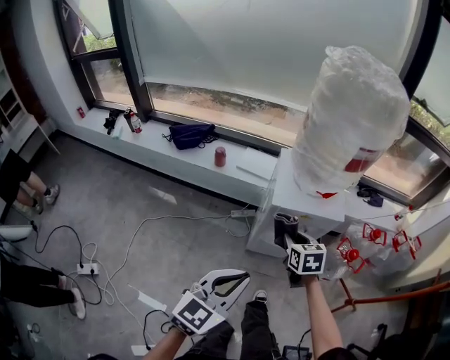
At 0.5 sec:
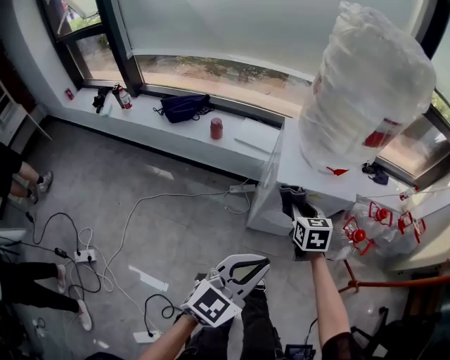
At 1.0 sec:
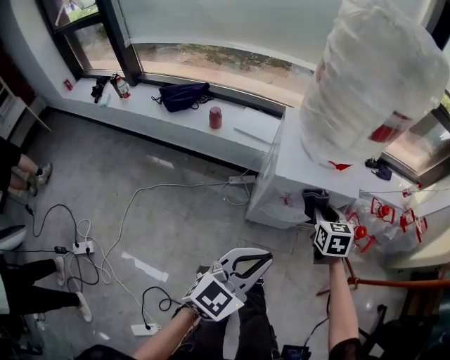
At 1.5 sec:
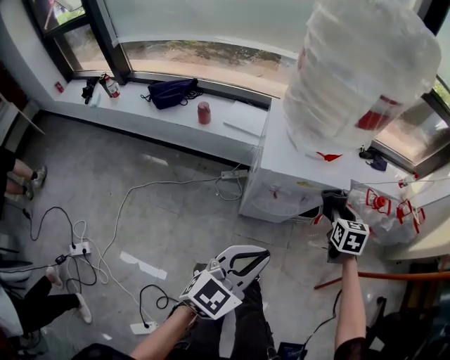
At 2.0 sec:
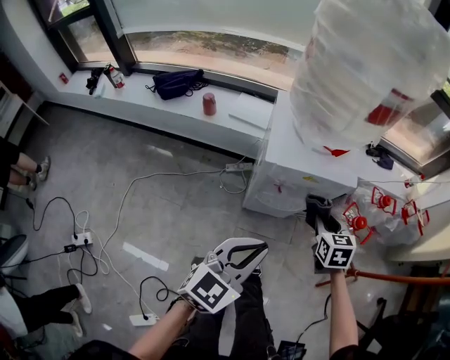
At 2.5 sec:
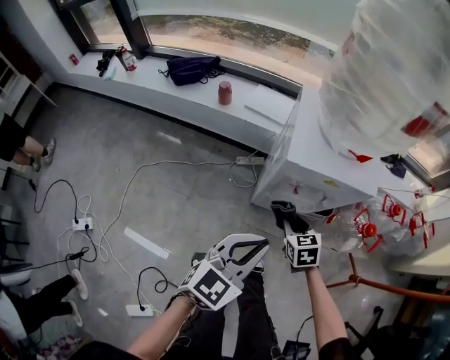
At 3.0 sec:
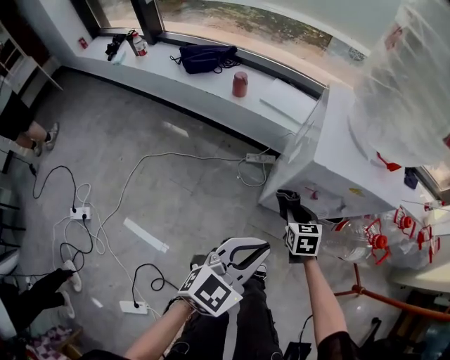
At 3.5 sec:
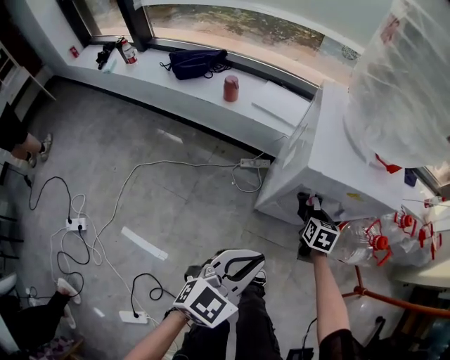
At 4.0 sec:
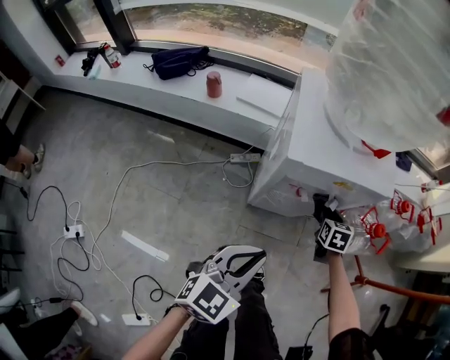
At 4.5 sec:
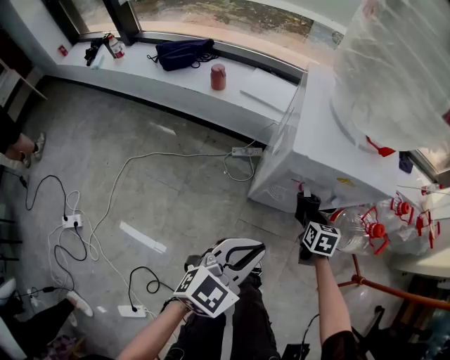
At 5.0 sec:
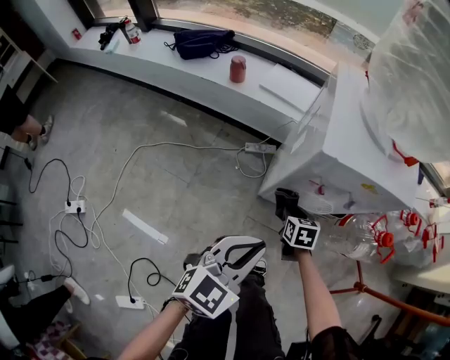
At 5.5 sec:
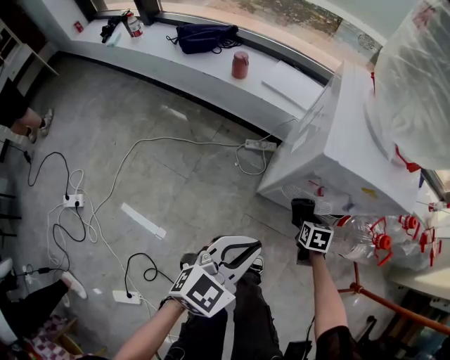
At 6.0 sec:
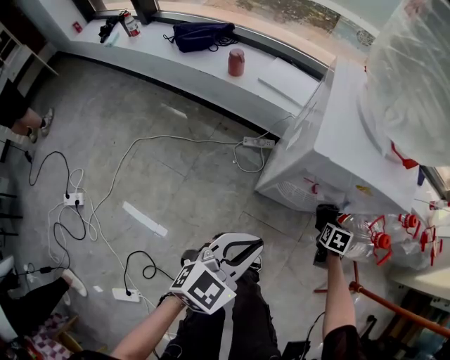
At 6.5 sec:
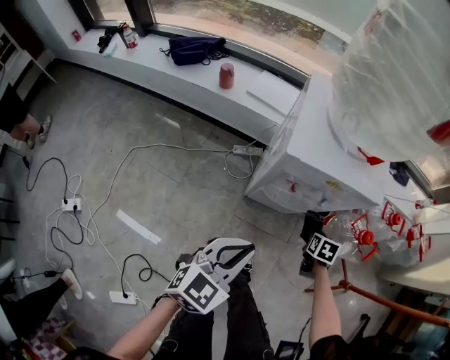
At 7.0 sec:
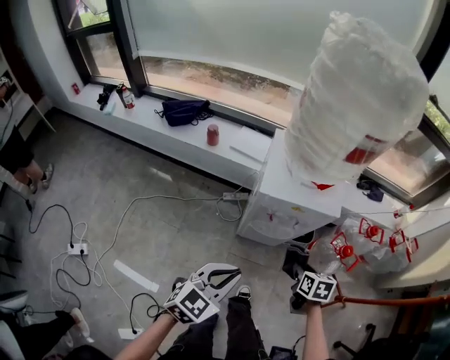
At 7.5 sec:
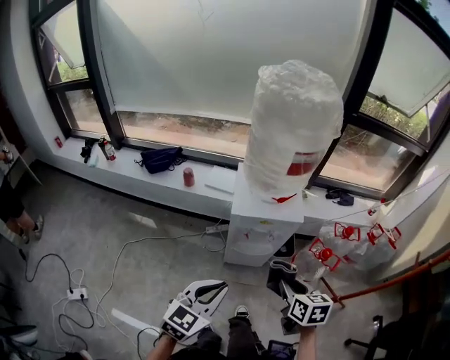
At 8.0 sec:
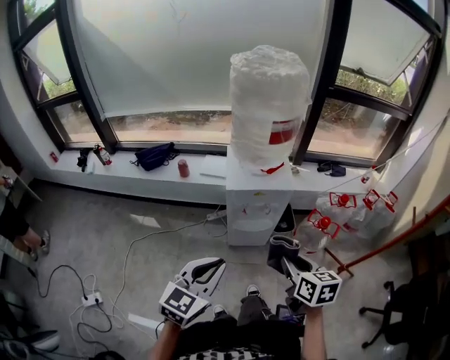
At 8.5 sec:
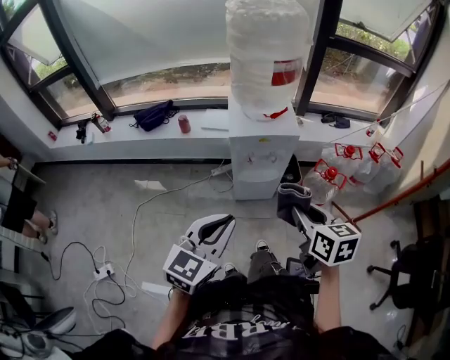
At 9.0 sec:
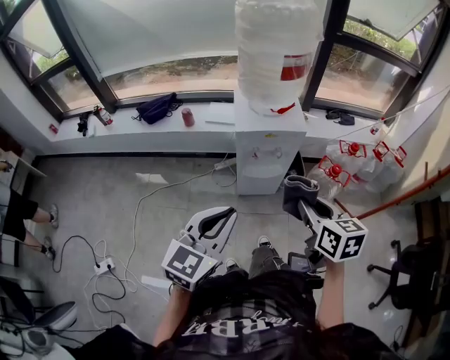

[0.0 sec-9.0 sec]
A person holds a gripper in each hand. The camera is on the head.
0.0 sec to 2.0 sec: The right gripper goes approximately 15 cm to the right and downward. The left gripper moves downward, forward and to the right, roughly 15 cm.
2.0 sec to 4.5 sec: The right gripper shifts approximately 20 cm downward. Meanwhile the left gripper goes about 15 cm downward.
4.5 sec to 7.0 sec: The left gripper shifts some 15 cm upward and backward. The right gripper travels upward and backward by roughly 25 cm.
7.0 sec to 9.0 sec: The right gripper goes about 30 cm upward and backward, and rotates approximately 20 degrees. Meanwhile the left gripper goes about 20 cm upward and backward.

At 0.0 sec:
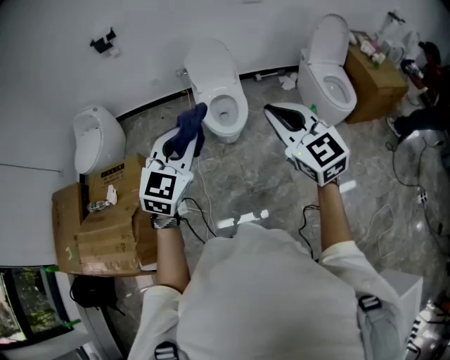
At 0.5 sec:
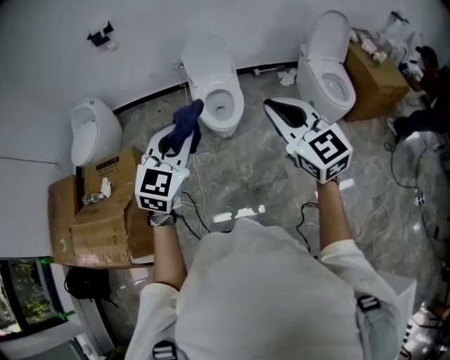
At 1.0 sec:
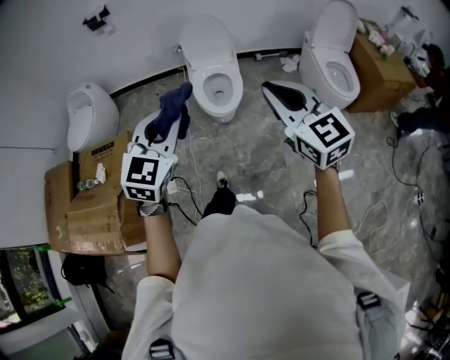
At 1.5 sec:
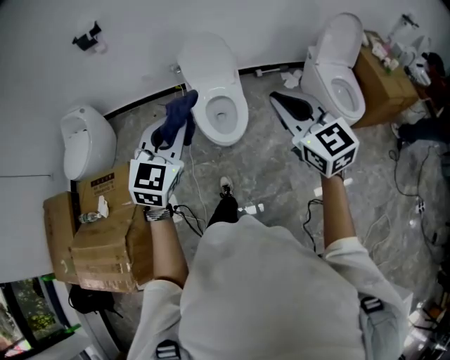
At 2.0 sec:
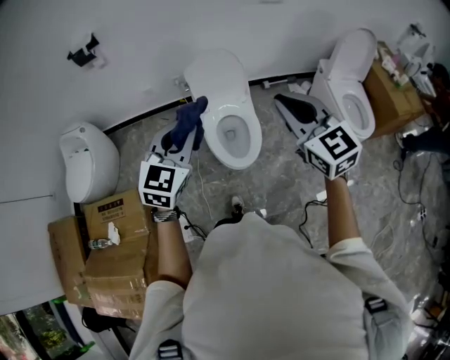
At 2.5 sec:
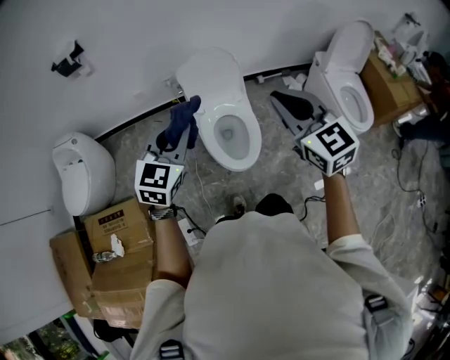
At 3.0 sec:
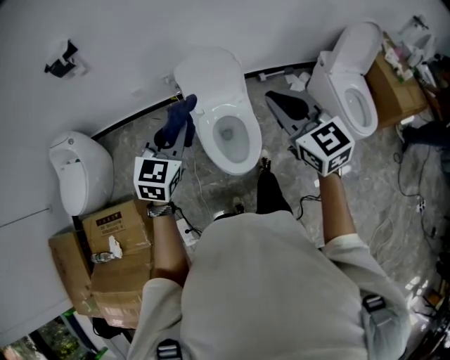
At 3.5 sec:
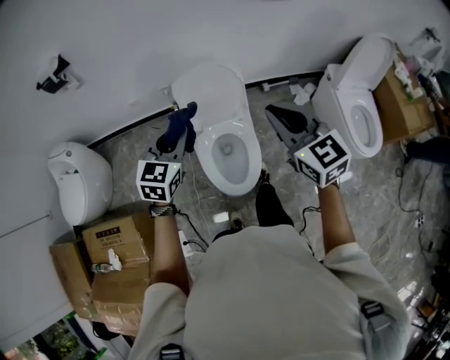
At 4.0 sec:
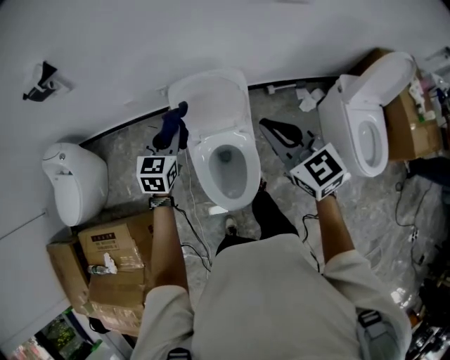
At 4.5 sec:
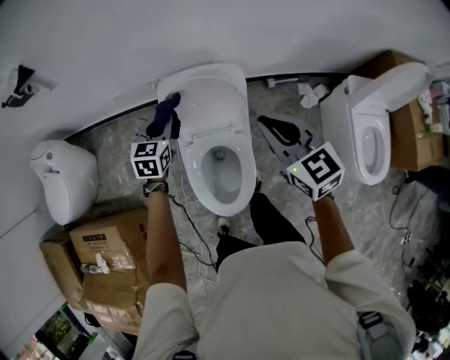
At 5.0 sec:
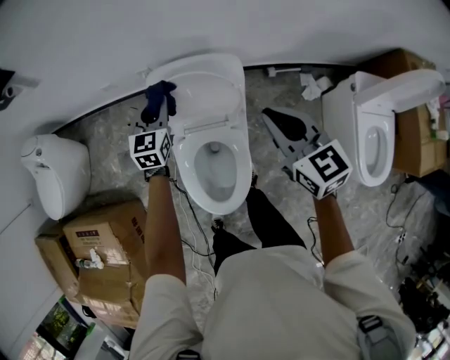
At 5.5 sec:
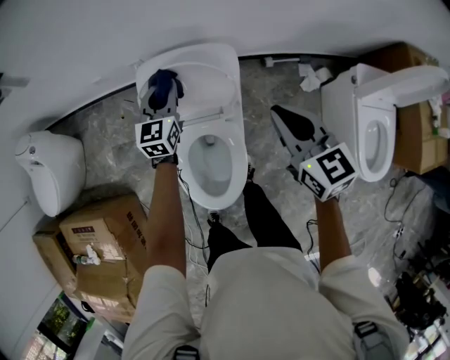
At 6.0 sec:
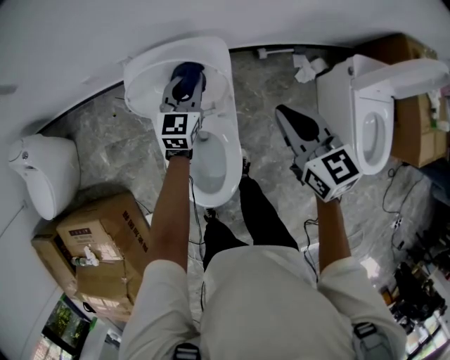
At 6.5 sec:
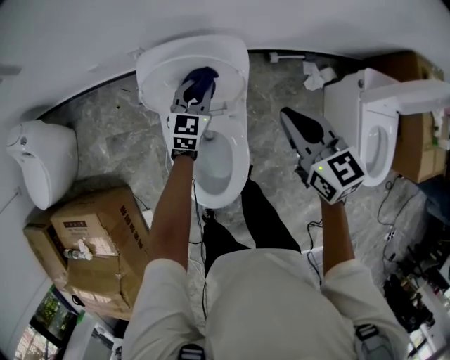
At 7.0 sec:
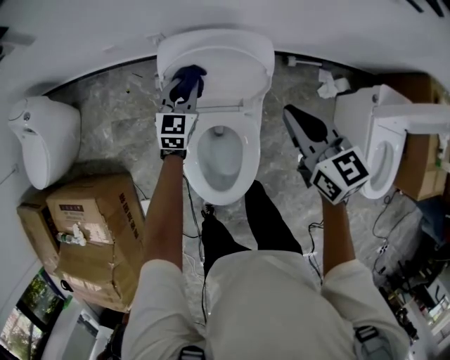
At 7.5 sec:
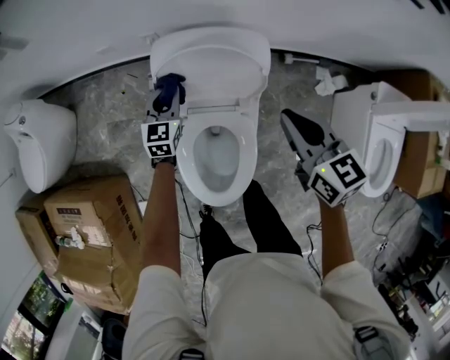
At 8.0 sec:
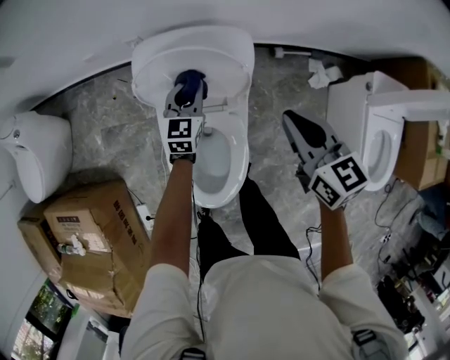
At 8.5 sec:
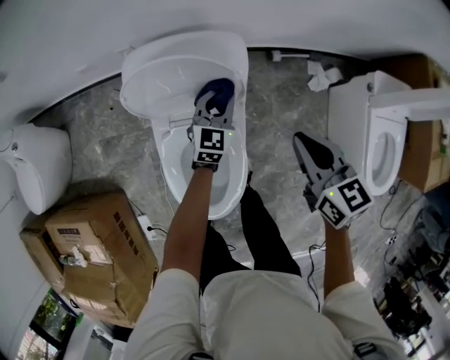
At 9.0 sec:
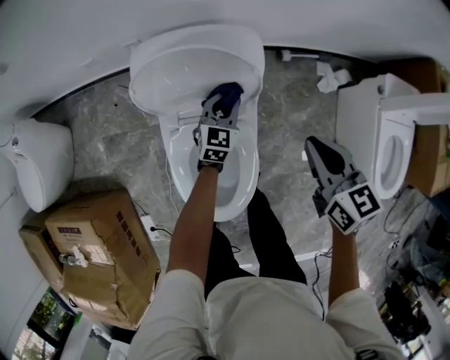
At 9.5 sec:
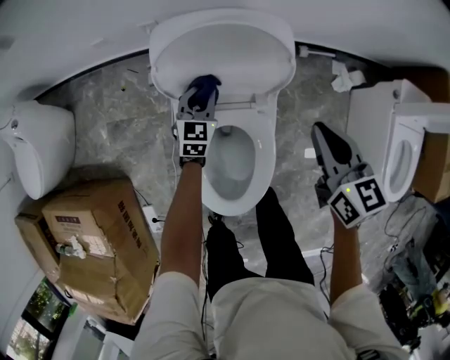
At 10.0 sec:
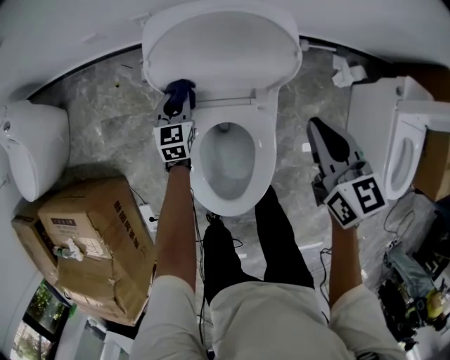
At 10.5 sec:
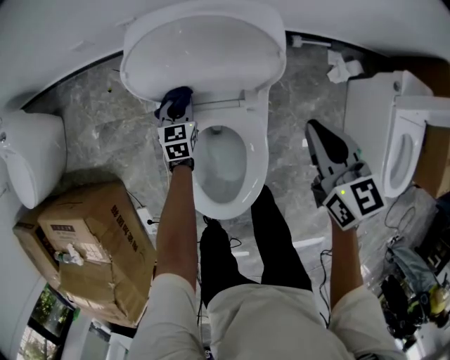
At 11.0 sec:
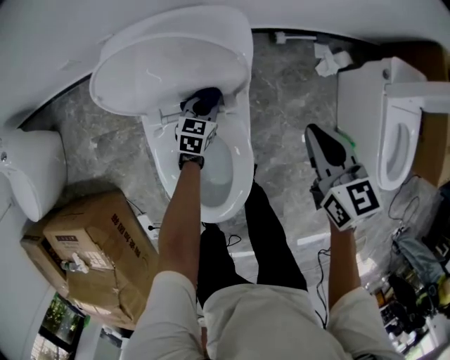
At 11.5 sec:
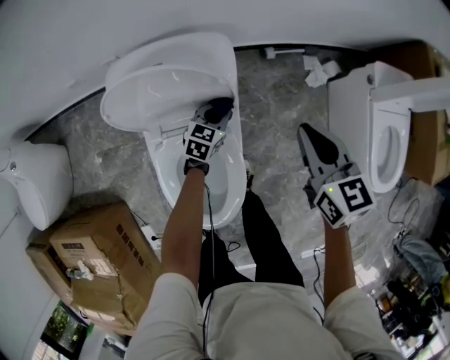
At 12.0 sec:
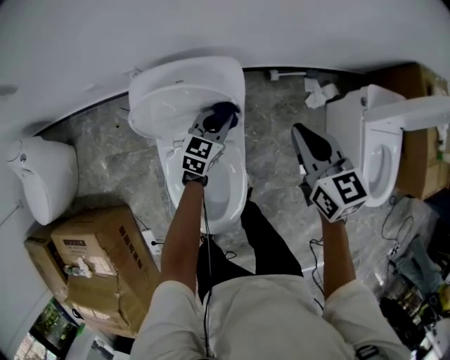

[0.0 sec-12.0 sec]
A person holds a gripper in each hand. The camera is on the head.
0.0 sec to 2.0 sec: The two grippers go some 35 cm forward.
2.0 sec to 4.0 sec: The left gripper travels forward and downward by about 40 cm, and turns by some 20 degrees, while the right gripper heads forward, covering some 30 cm.
4.0 sec to 6.0 sec: The left gripper moves to the right, downward and forward, approximately 30 cm; the right gripper goes roughly 25 cm downward, to the right and forward.
6.0 sec to 8.0 sec: The left gripper heads downward and to the left, covering approximately 10 cm.
8.0 sec to 10.0 sec: The left gripper shifts roughly 20 cm downward and to the left; the right gripper is displaced downward by about 10 cm.
10.0 sec to 12.0 sec: The left gripper is displaced to the right and upward by some 30 cm, and swivels about 30 degrees. Meanwhile the right gripper heads to the right, upward and forward, covering some 15 cm.

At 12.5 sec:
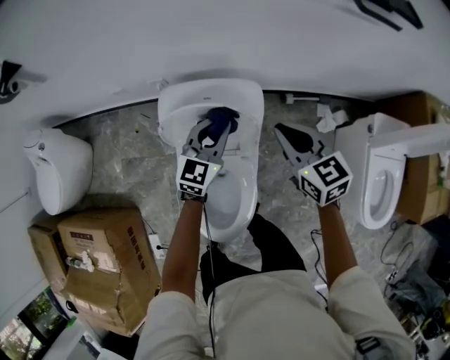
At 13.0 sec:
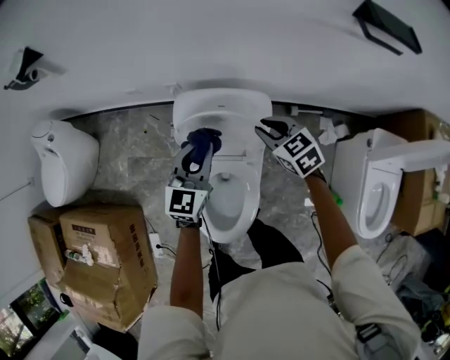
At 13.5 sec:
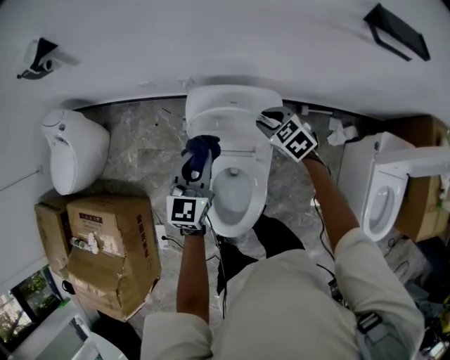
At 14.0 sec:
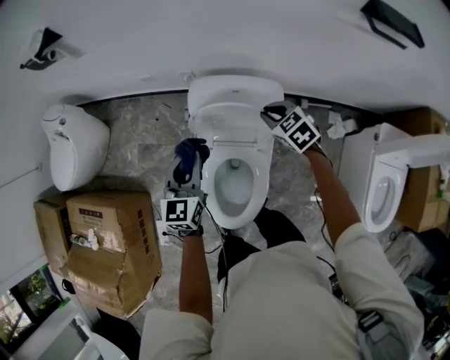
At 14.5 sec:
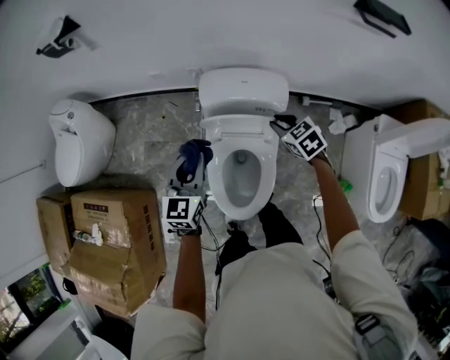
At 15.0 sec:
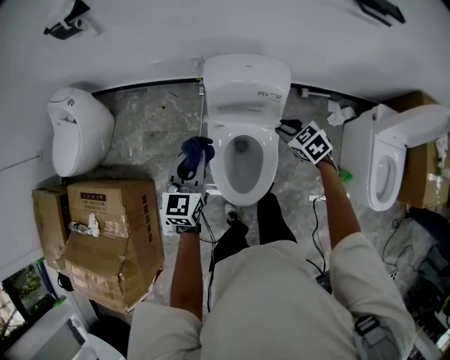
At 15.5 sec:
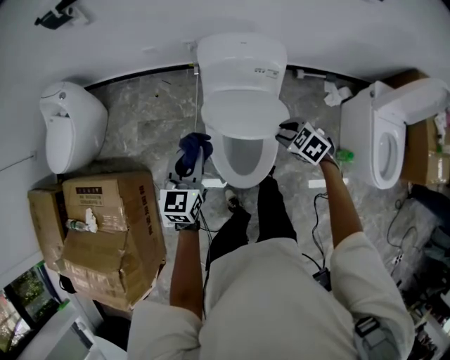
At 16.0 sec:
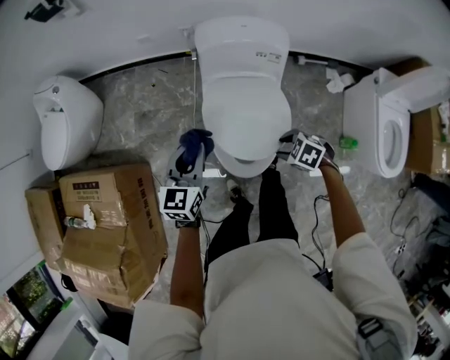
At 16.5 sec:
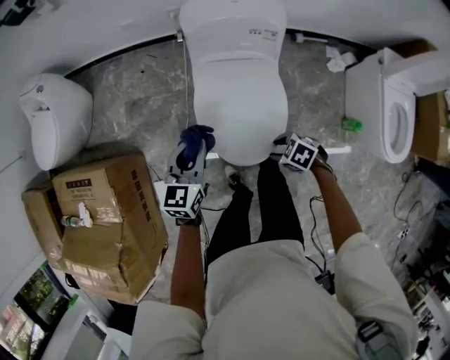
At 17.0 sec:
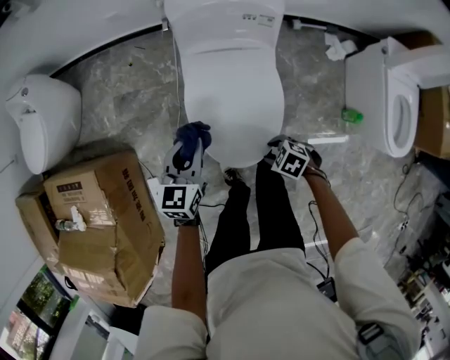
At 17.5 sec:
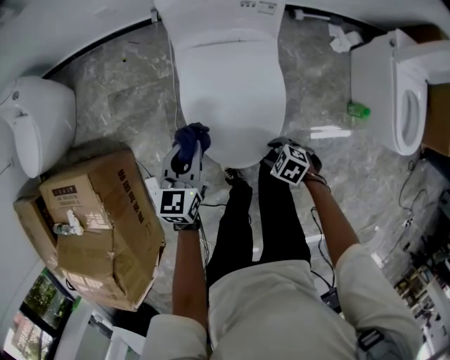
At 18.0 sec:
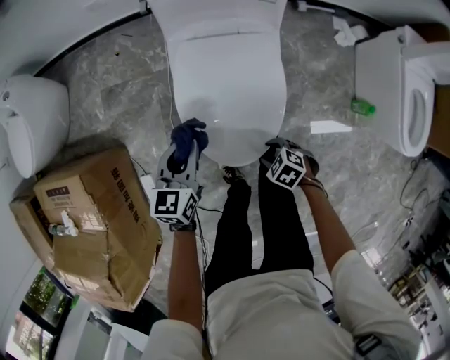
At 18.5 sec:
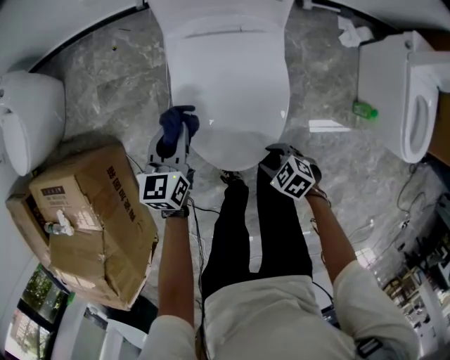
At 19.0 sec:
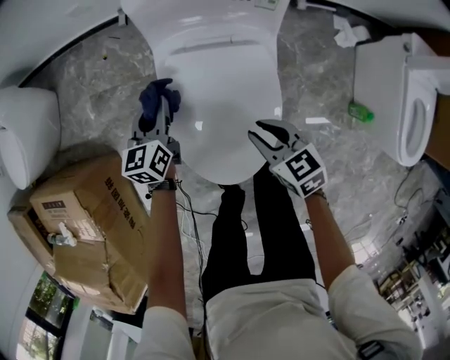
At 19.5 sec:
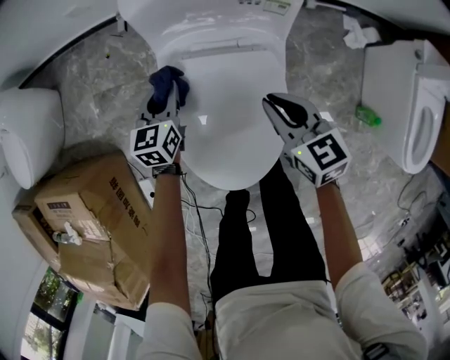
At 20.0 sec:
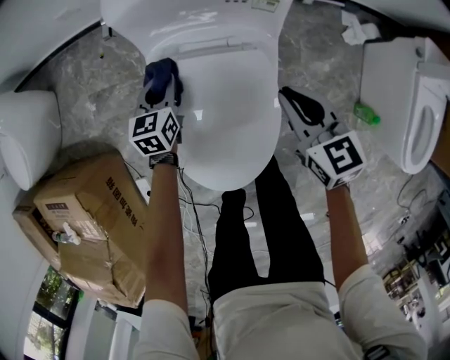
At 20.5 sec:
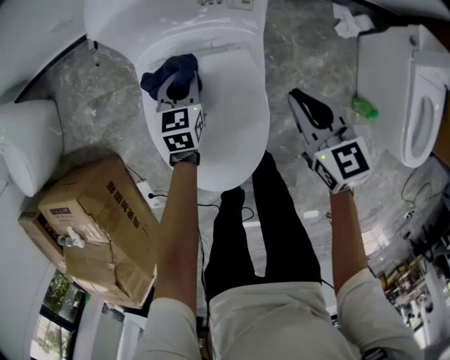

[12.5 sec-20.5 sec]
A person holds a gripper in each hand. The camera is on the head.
12.5 sec to 14.5 sec: The left gripper heads to the left, backward and upward, covering roughly 30 cm, and swivels about 20 degrees. The right gripper heads to the left and downward, covering about 10 cm, reaches roughly 5 cm forward, then returns, and swivels about 30 degrees.
14.5 sec to 16.5 sec: The left gripper shifts about 20 cm backward, downward and to the left; the right gripper goes some 40 cm backward, downward and to the left, turns by roughly 30 degrees, and opens up.
16.5 sec to 18.5 sec: Both grippers travel together downward, roughly 15 cm.
18.5 sec to 20.5 sec: The left gripper shifts by some 25 cm; the right gripper moves roughly 35 cm, turns by some 50 degrees, and closes.
